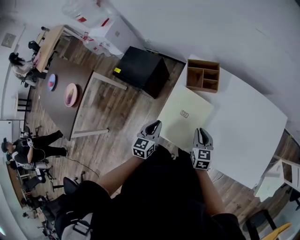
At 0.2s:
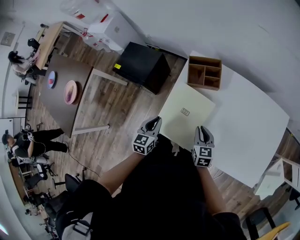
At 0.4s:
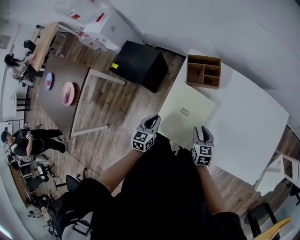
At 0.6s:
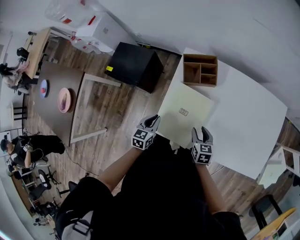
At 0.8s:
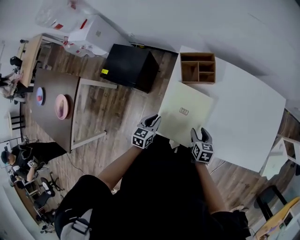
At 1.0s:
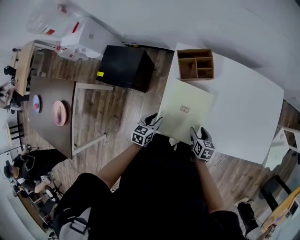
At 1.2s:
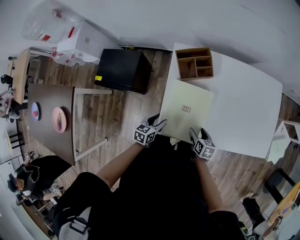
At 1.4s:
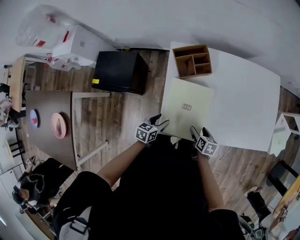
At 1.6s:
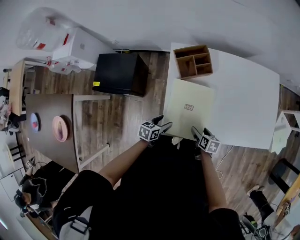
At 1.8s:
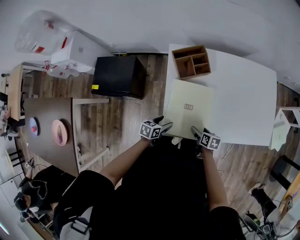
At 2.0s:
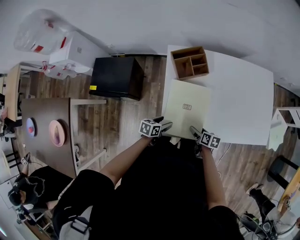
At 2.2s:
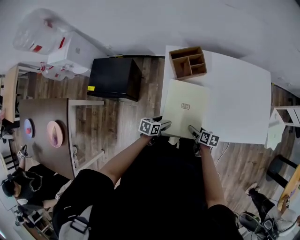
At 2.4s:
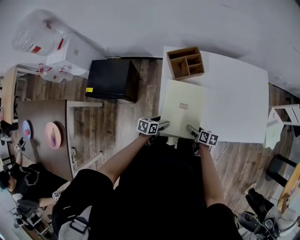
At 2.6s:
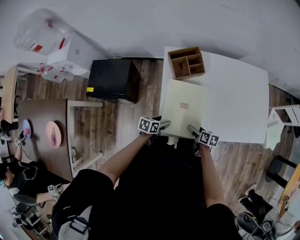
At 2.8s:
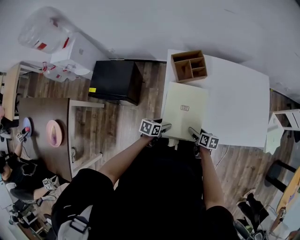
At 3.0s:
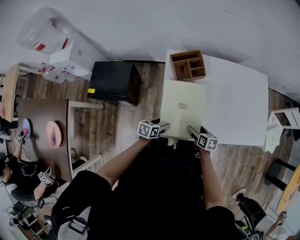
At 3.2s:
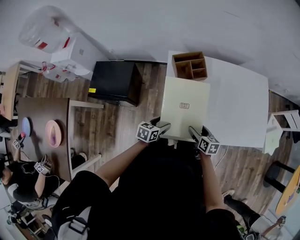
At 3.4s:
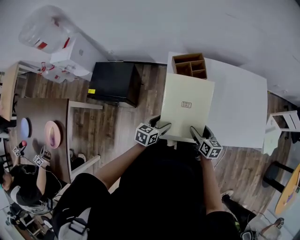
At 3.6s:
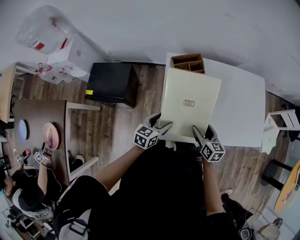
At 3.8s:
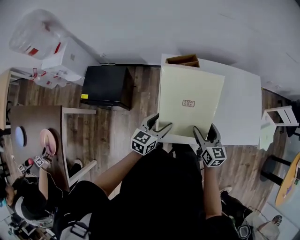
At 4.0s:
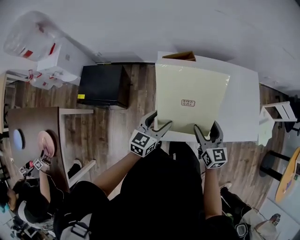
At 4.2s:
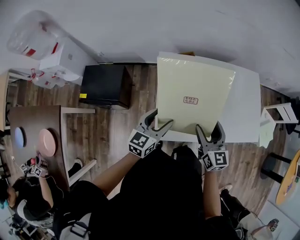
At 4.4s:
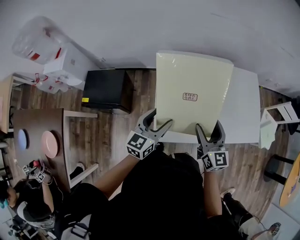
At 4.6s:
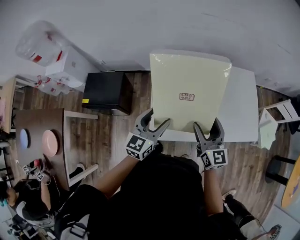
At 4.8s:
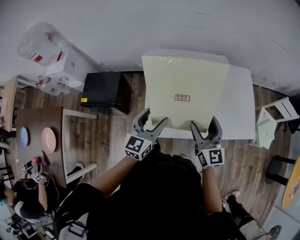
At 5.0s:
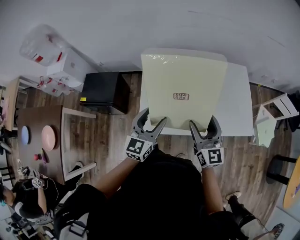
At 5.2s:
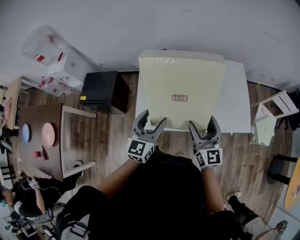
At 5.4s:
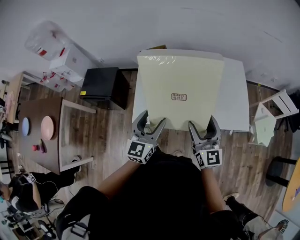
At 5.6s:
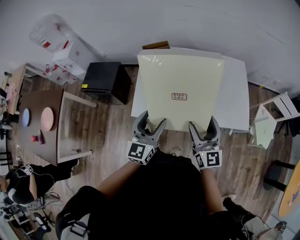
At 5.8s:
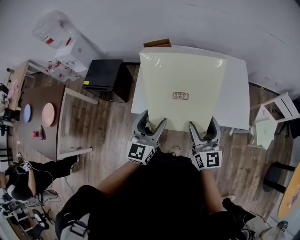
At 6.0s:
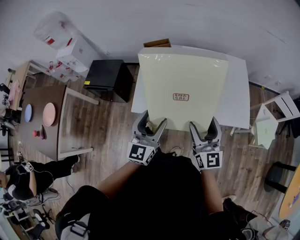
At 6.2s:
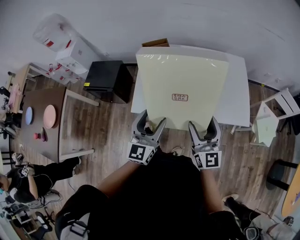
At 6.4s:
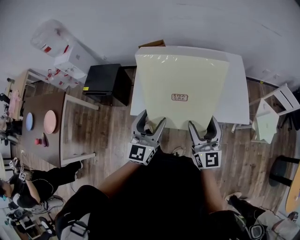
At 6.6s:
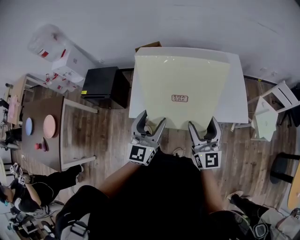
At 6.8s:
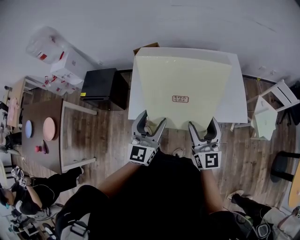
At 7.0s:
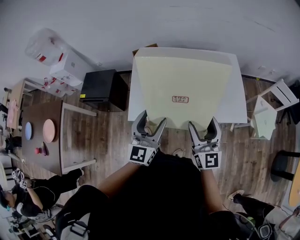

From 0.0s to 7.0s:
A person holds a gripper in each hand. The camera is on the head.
From 0.0s to 1.4s: Both grippers move downward, about 10 cm. The left gripper changes its angle by roughly 40 degrees, and opens its fingers; the right gripper swivels roughly 40 degrees, and opens up.
From 1.4s to 2.8s: The grippers make only small movements.
From 2.8s to 4.2s: Both grippers move upward, approximately 25 cm. The right gripper angles its fingers upward, by roughly 30 degrees. Meanwhile the left gripper turns by roughly 40 degrees.
From 4.2s to 5.6s: Both grippers travel together to the right and backward, about 25 cm. The left gripper swivels roughly 30 degrees.
From 5.6s to 7.0s: There are only small adjustments of the grippers.

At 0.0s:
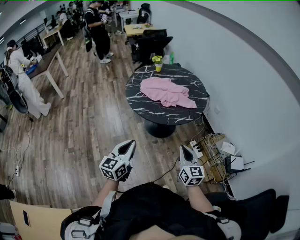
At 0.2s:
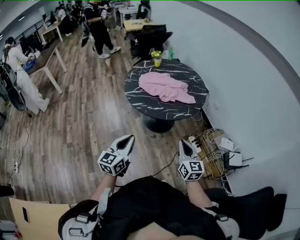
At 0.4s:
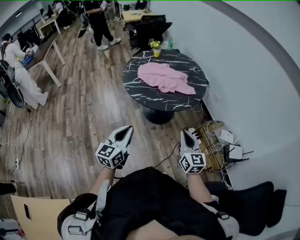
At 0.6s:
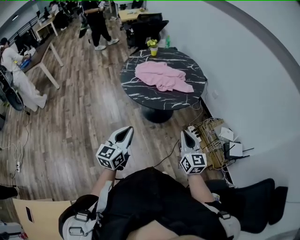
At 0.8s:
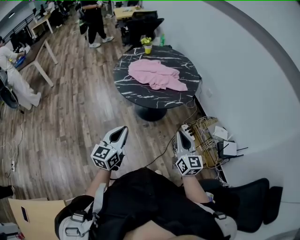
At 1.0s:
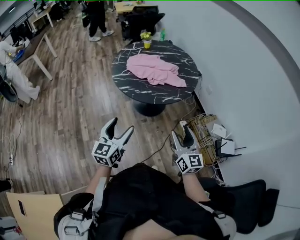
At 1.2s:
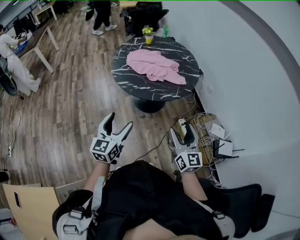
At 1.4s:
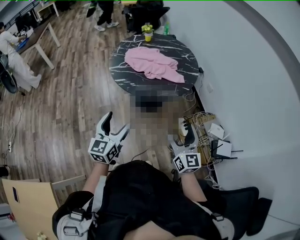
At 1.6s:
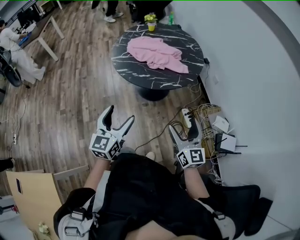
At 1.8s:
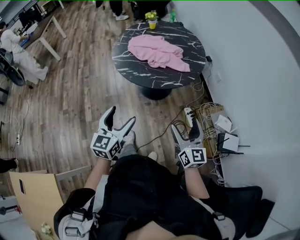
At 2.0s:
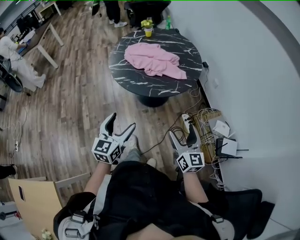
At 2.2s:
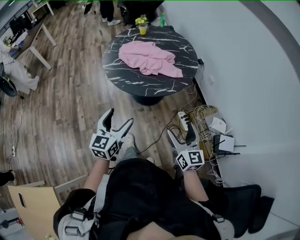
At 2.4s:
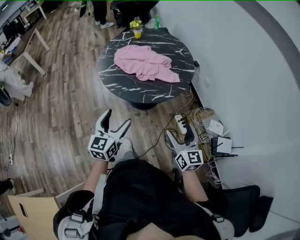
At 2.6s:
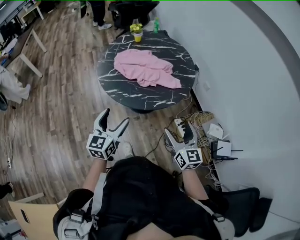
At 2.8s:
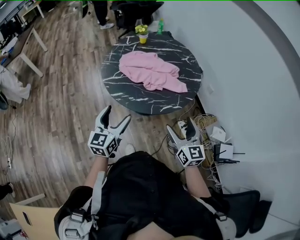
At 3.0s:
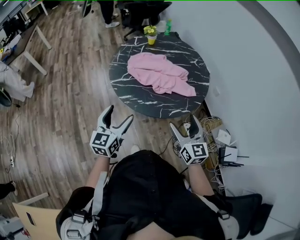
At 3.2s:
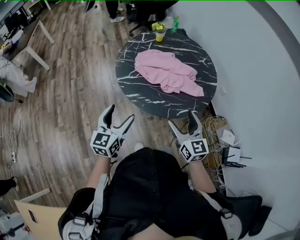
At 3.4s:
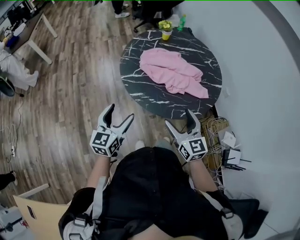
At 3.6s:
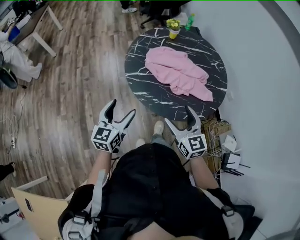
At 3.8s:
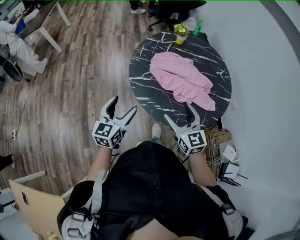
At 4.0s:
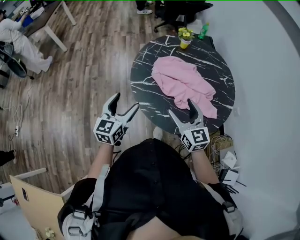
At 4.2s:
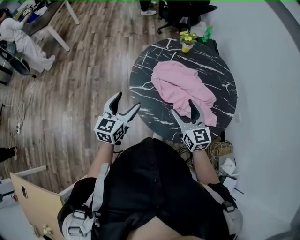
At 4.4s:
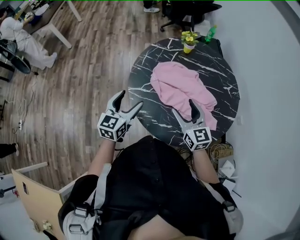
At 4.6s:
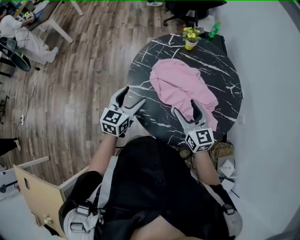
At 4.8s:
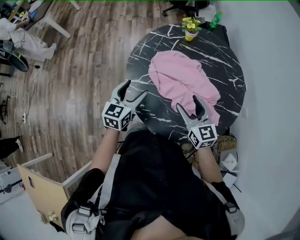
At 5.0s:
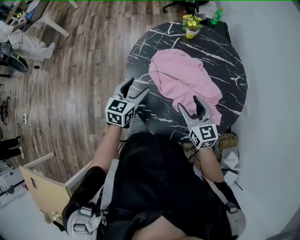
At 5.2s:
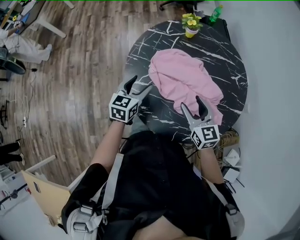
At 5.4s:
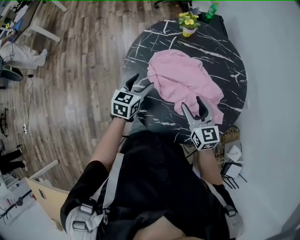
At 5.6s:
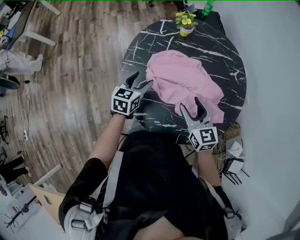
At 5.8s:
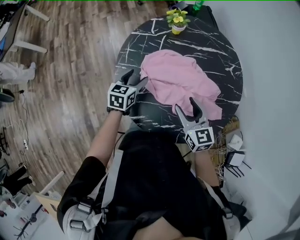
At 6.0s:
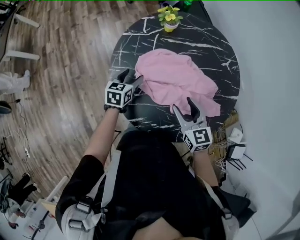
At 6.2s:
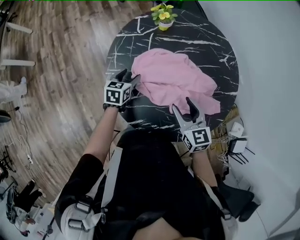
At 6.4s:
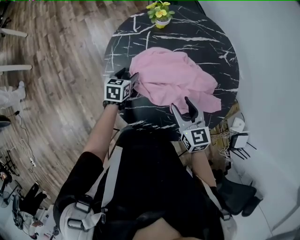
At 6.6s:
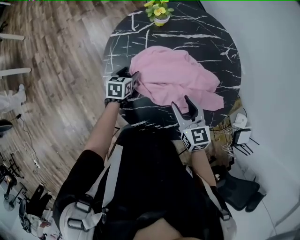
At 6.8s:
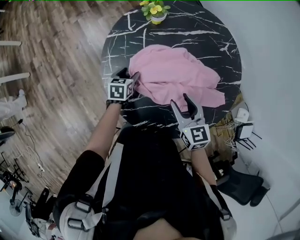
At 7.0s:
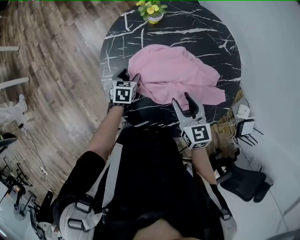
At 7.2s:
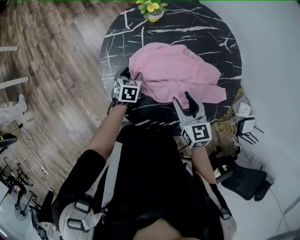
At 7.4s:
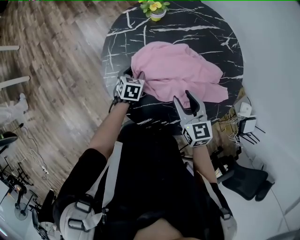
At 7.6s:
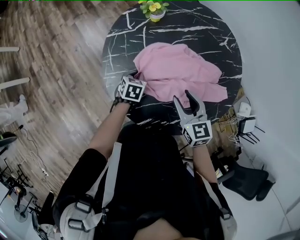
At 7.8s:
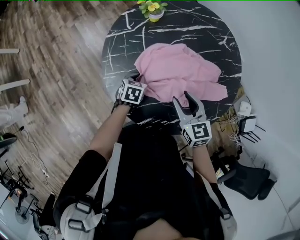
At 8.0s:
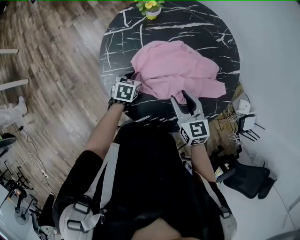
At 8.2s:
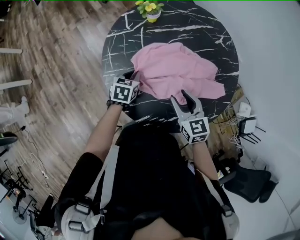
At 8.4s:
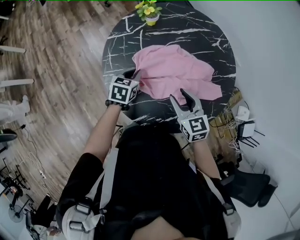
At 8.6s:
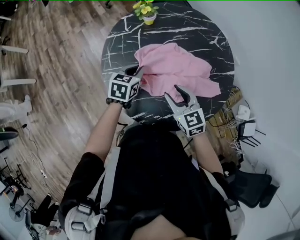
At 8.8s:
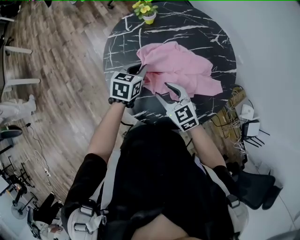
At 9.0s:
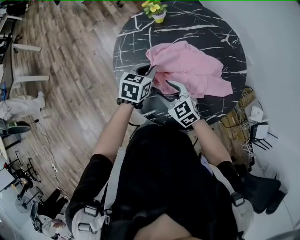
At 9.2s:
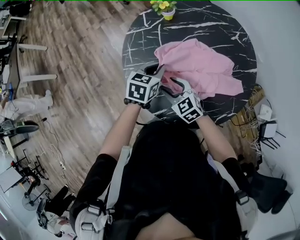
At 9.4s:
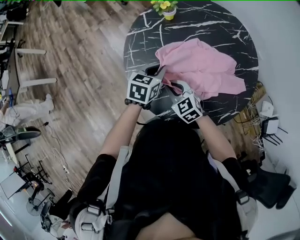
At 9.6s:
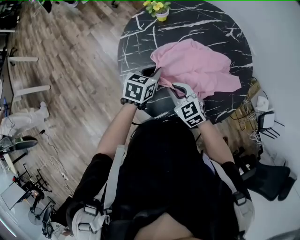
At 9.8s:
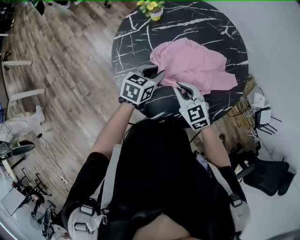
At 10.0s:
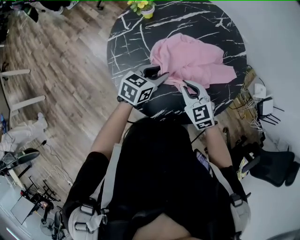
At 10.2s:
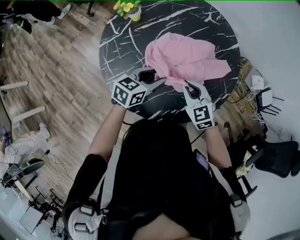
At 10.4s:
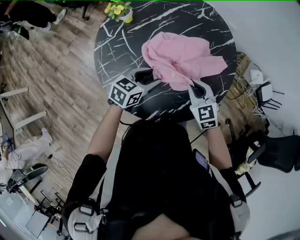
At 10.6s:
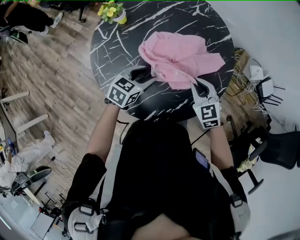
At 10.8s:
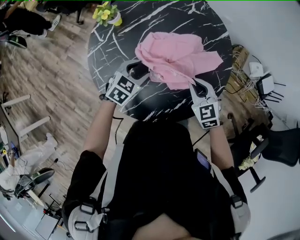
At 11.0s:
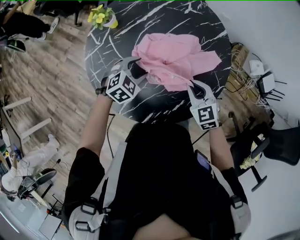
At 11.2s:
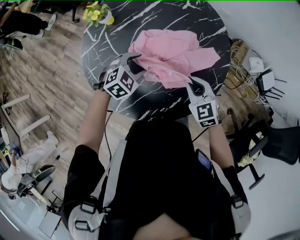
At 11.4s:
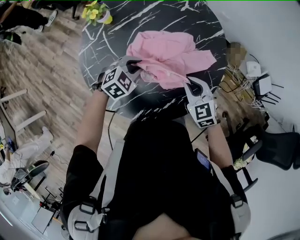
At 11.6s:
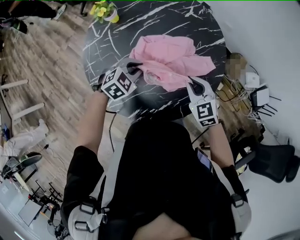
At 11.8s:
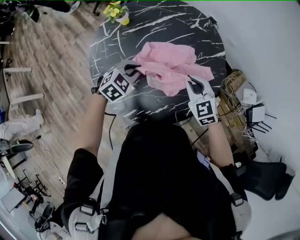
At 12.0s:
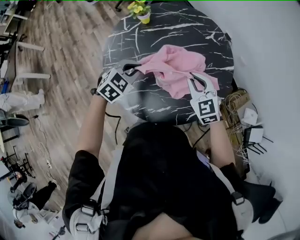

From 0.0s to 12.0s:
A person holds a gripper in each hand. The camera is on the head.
From 0.0s to 1.6s: Both grippers move to the right, about 10 cm. The right gripper opens its fingers. The left gripper opens its fingers.
From 1.6s to 3.0s: Both grippers move forward and to the left, approximately 25 cm.
From 3.0s to 4.4s: The grippers both shift forward by about 25 cm. The right gripper turns by about 20 degrees.
From 4.4s to 6.0s: The right gripper shifts approximately 10 cm downward and forward, and swivels approximately 20 degrees; the left gripper heads forward and downward, covering about 25 cm, and changes its angle by roughly 30 degrees.
From 6.0s to 7.6s: The left gripper moves downward, approximately 10 cm, swivels roughly 30 degrees, and closes its fingers.
From 7.6s to 9.0s: The left gripper is displaced upward by roughly 15 cm. The right gripper is displaced to the left by about 5 cm, and swivels about 30 degrees.
From 9.0s to 10.4s: The right gripper ends up some 15 cm from where it was, changes its angle by about 40 degrees, and closes up; the left gripper moves approximately 10 cm, turns by some 40 degrees, and opens up.
From 10.4s to 12.0s: The left gripper travels upward by about 5 cm, turns by approximately 40 degrees, and closes its fingers. The right gripper changes place by approximately 10 cm, and turns by some 30 degrees.

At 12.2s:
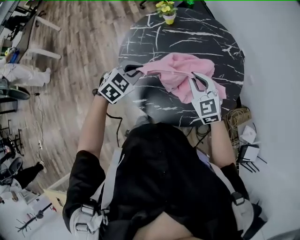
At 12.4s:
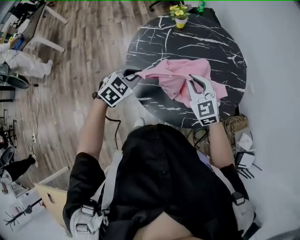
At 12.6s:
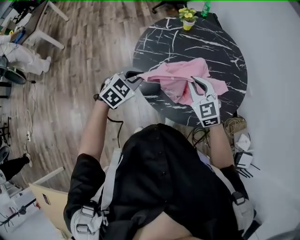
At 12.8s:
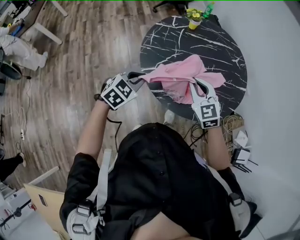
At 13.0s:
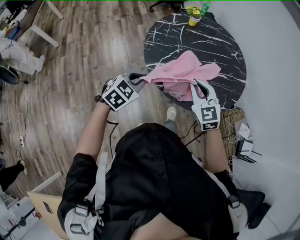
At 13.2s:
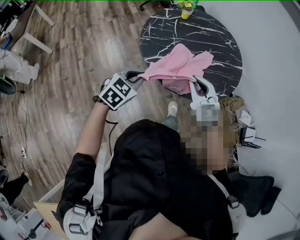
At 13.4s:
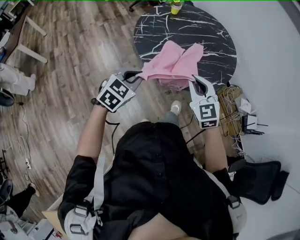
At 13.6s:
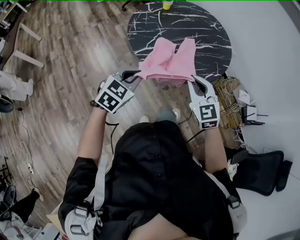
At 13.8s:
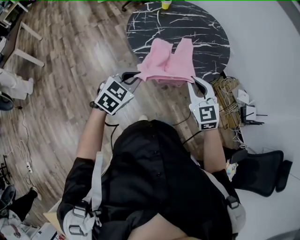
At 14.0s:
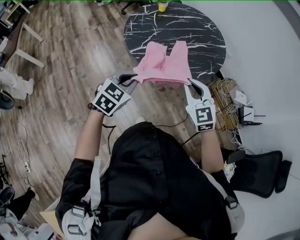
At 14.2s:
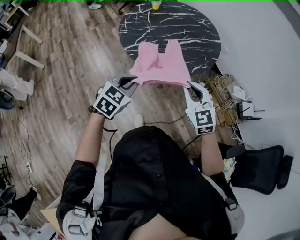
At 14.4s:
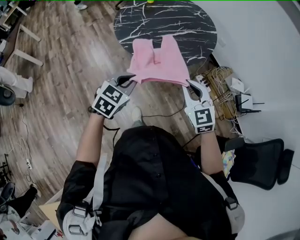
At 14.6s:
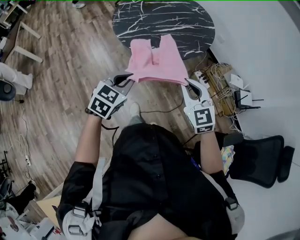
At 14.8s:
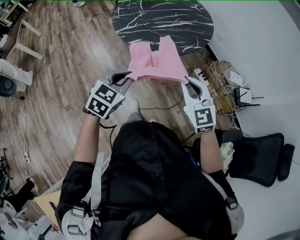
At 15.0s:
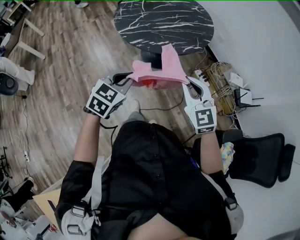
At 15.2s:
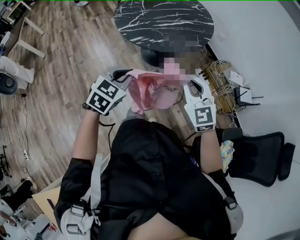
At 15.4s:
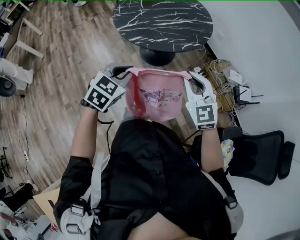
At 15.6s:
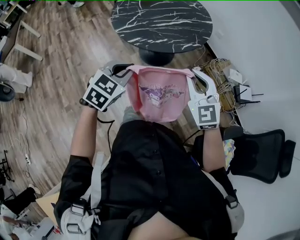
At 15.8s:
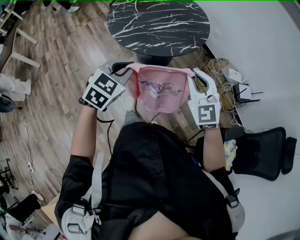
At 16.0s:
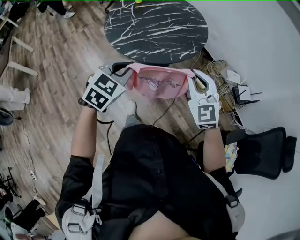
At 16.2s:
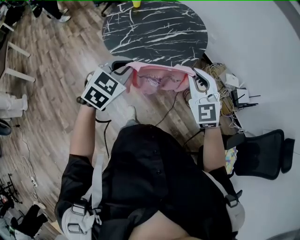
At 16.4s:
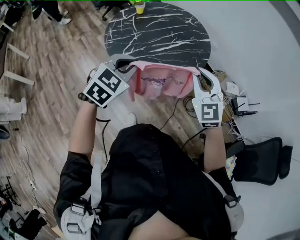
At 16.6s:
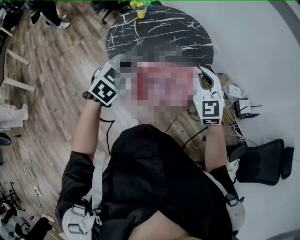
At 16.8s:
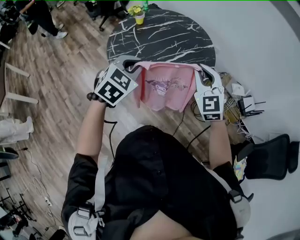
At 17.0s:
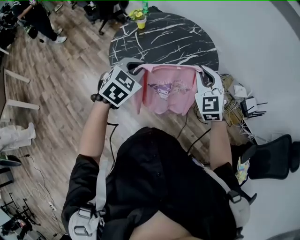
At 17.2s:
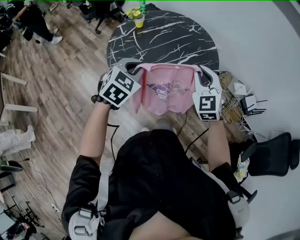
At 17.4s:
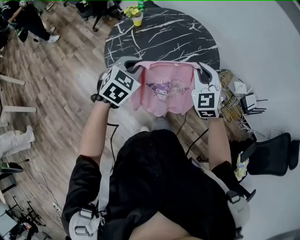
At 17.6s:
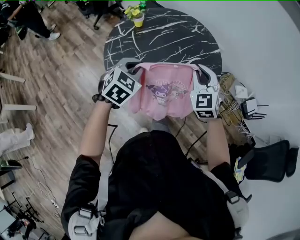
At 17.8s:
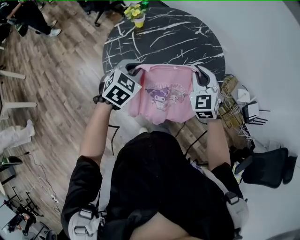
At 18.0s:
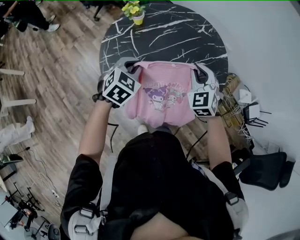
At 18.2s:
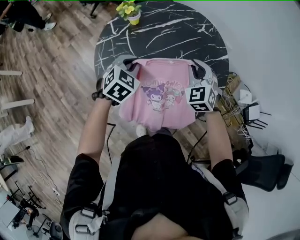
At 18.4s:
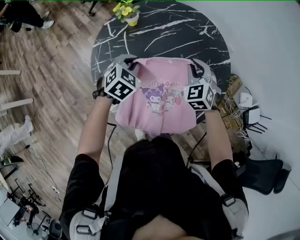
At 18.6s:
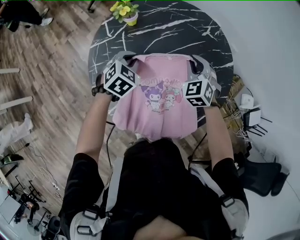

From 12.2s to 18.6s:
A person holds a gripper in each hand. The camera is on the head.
From 12.2s to 13.8s: The grippers both shift backward by some 30 cm.
From 13.8s to 15.4s: Both grippers travel together backward and to the right, approximately 20 cm.
From 15.4s to 17.0s: The grippers both shift forward and to the left by approximately 35 cm. The right gripper rotates some 20 degrees.
From 17.0s to 18.6s: The two grippers go some 35 cm forward and downward. The right gripper swivels roughly 20 degrees.
